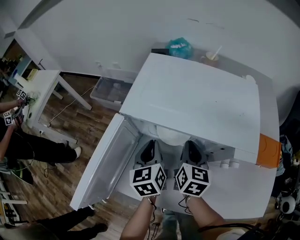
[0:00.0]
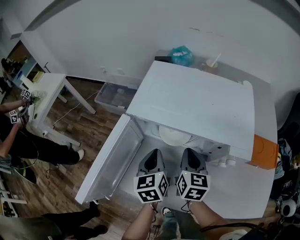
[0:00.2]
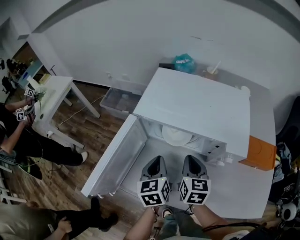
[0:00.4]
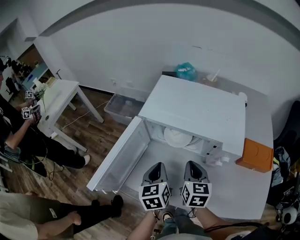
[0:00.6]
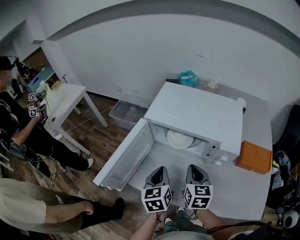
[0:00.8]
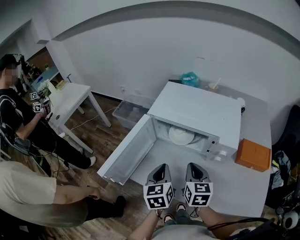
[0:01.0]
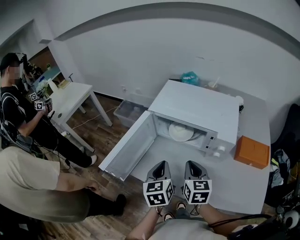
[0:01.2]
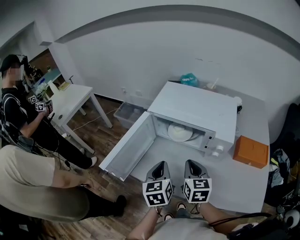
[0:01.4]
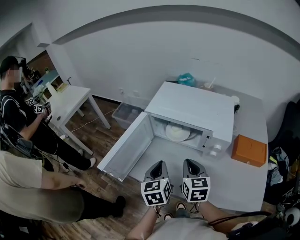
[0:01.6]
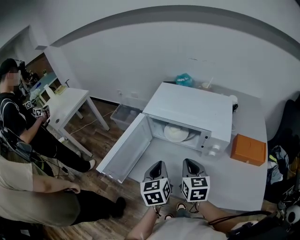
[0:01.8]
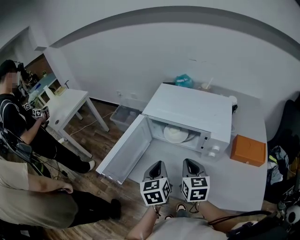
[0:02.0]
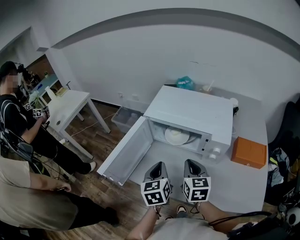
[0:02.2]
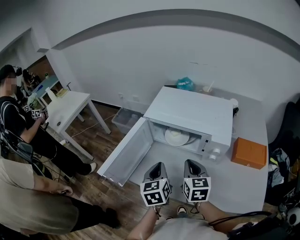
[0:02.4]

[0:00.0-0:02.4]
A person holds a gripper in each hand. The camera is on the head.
0.0 to 1.2 s: The grippers both shift backward and upward by about 20 cm. The right gripper turns by about 20 degrees.
1.2 to 2.4 s: There are only small adjustments of the grippers.

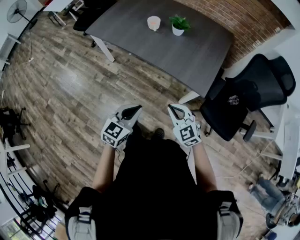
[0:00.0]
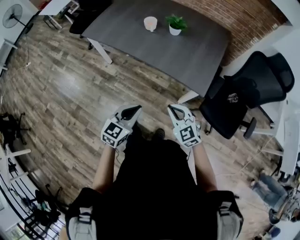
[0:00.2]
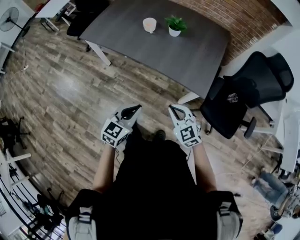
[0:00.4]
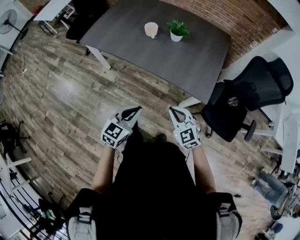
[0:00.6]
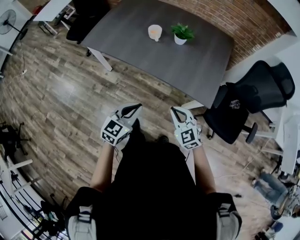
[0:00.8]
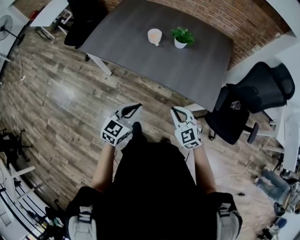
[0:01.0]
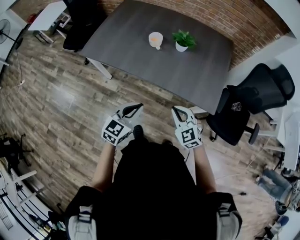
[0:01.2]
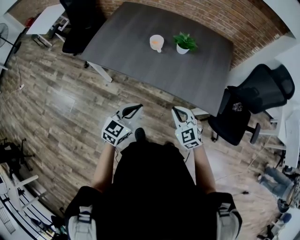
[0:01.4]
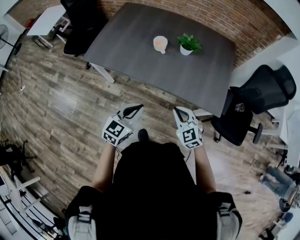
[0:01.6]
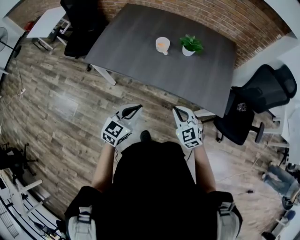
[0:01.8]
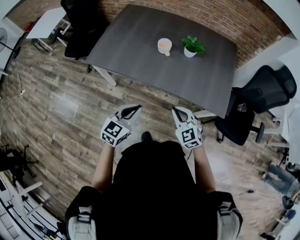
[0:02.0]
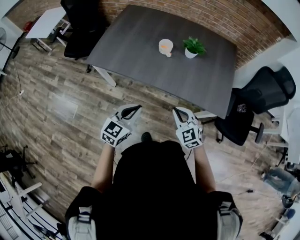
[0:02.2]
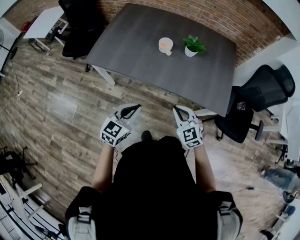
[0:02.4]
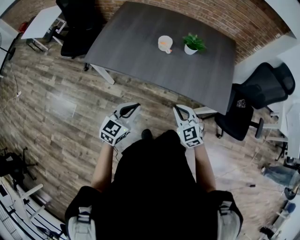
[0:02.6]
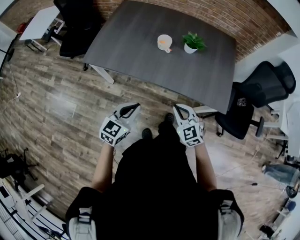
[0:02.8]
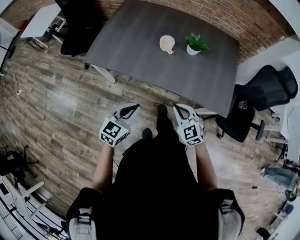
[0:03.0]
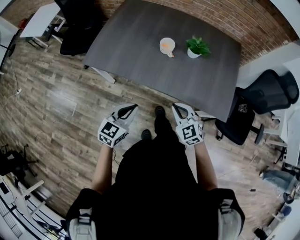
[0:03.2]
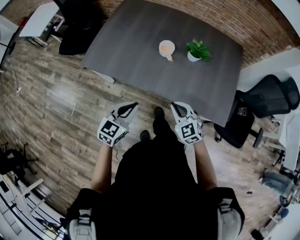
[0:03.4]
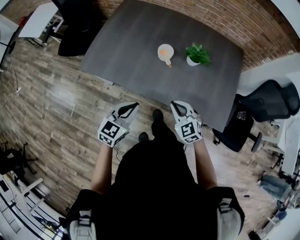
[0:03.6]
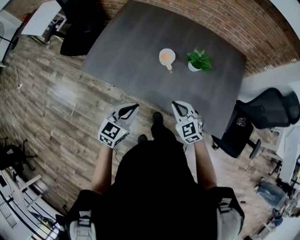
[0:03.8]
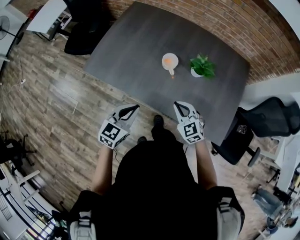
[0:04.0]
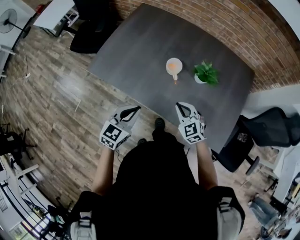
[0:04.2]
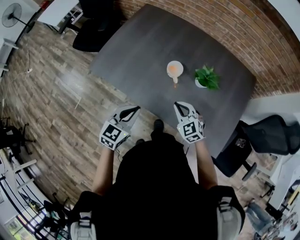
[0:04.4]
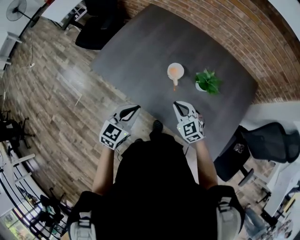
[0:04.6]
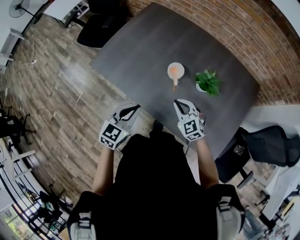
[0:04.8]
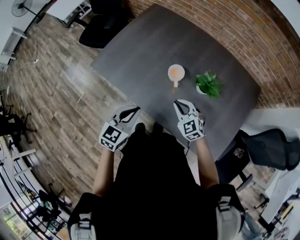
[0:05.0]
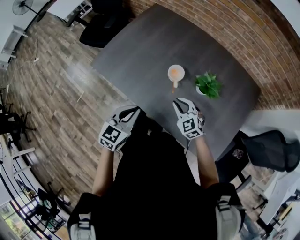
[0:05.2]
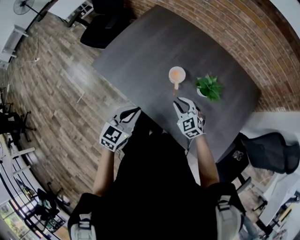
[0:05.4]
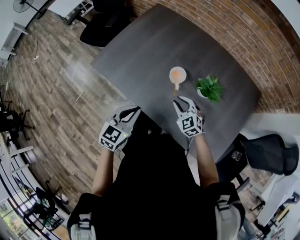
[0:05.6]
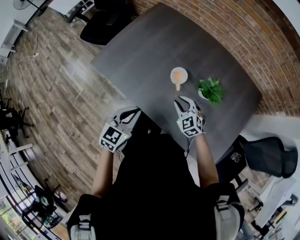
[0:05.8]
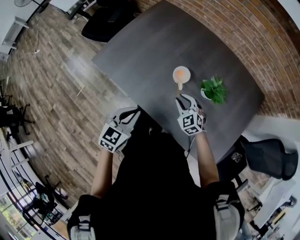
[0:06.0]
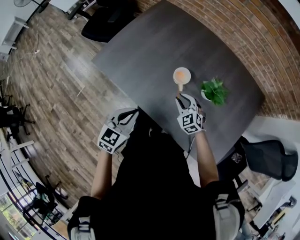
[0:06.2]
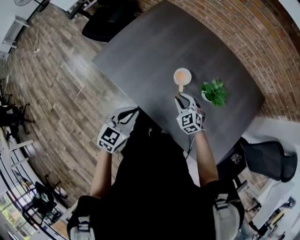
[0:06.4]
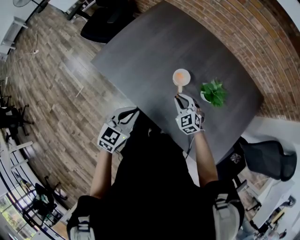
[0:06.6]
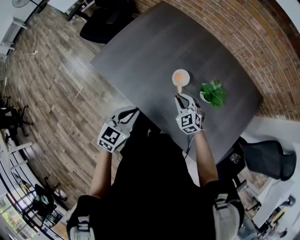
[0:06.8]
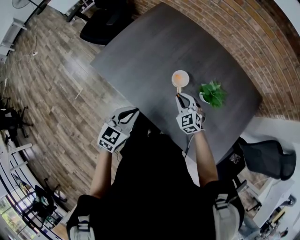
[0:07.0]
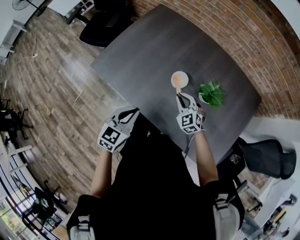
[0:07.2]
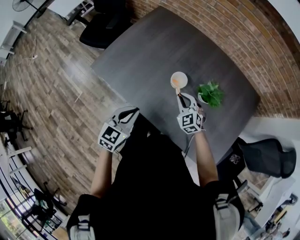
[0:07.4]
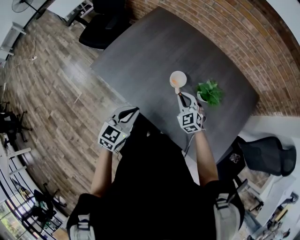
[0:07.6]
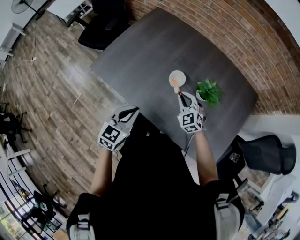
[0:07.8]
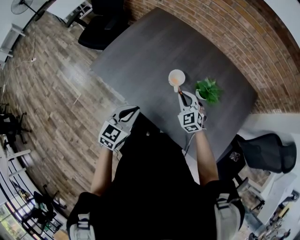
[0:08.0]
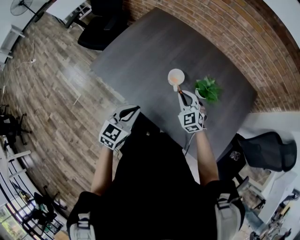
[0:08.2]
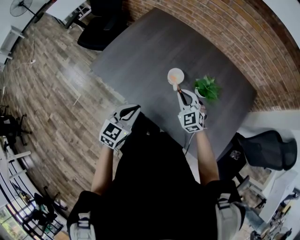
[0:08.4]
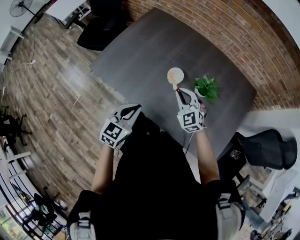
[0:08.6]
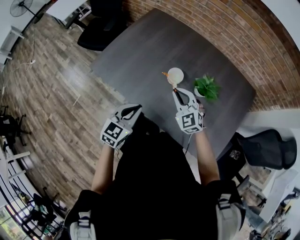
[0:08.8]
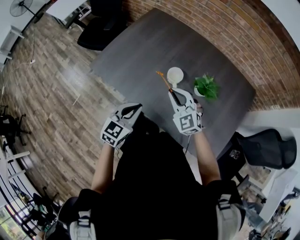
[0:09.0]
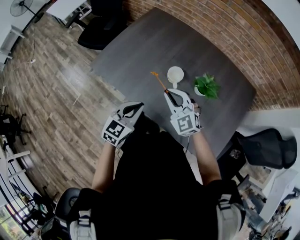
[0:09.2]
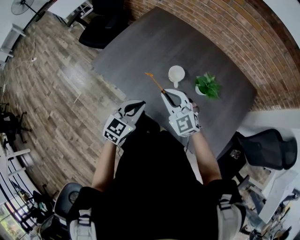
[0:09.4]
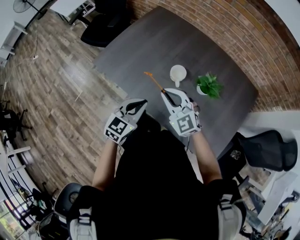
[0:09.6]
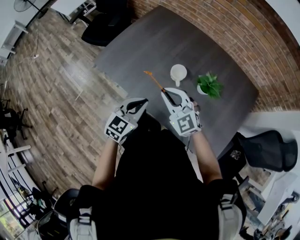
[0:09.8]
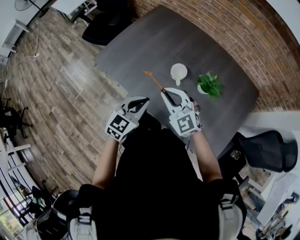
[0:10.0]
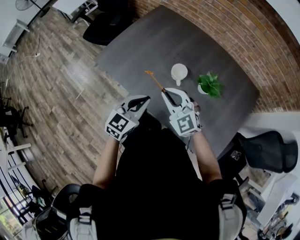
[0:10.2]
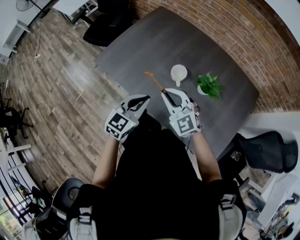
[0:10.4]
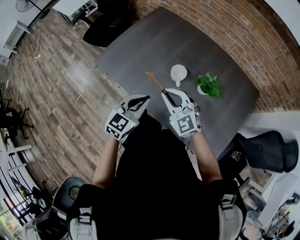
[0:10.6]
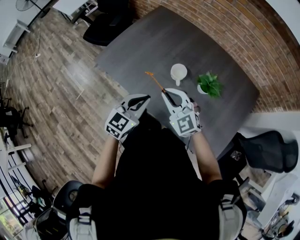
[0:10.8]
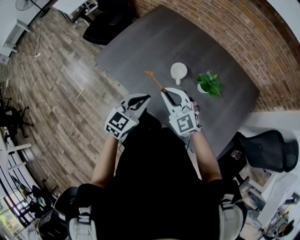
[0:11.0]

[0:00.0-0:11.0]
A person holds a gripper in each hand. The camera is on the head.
0.0 to 1.6 s: Both grippers move forward and to the left, approximately 25 cm.
1.6 to 3.2 s: Both grippers move to the left and forward, roughly 10 cm.
3.2 to 4.8 s: The two grippers go some 20 cm forward.
4.8 to 6.2 s: The right gripper heads forward and downward, covering about 10 cm.
6.2 to 7.8 s: The right gripper moves approximately 5 cm.
7.8 to 9.4 s: The right gripper shifts some 15 cm upward, to the left and backward, and changes its angle by some 20 degrees.
9.4 to 11.0 s: There are only small adjustments of the grippers.

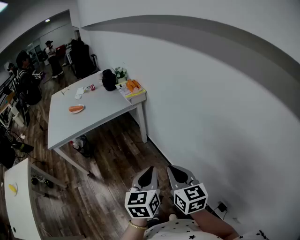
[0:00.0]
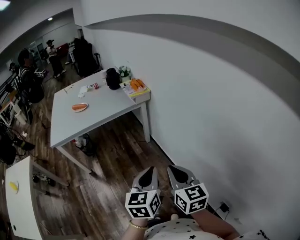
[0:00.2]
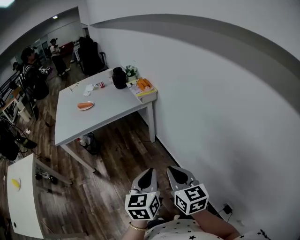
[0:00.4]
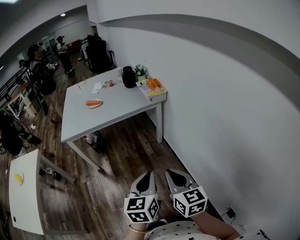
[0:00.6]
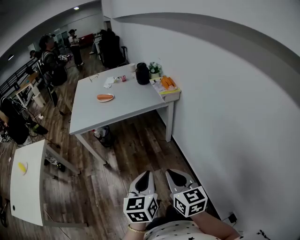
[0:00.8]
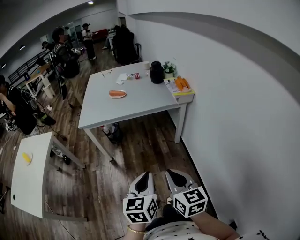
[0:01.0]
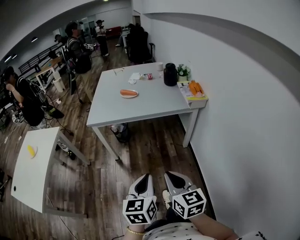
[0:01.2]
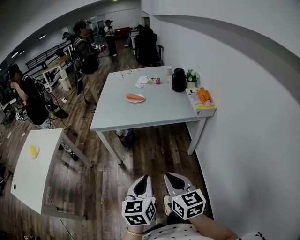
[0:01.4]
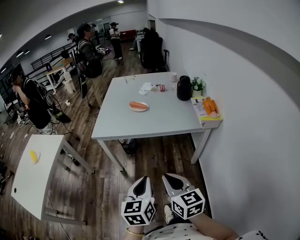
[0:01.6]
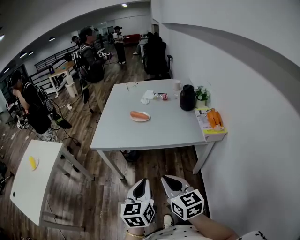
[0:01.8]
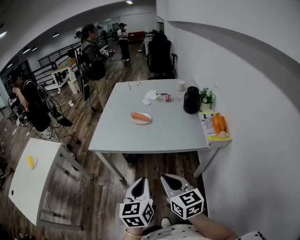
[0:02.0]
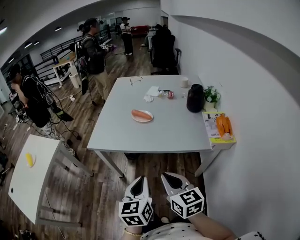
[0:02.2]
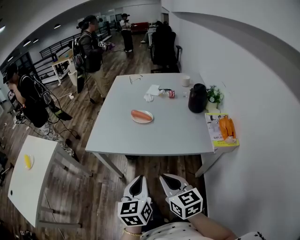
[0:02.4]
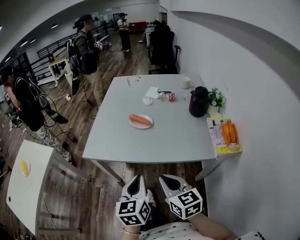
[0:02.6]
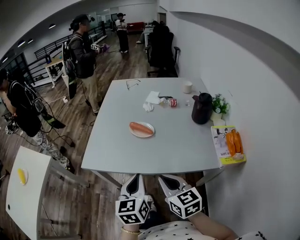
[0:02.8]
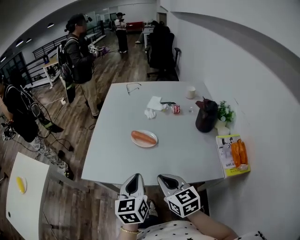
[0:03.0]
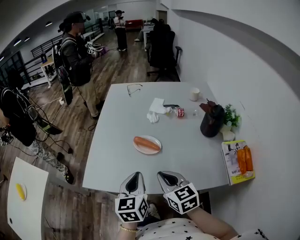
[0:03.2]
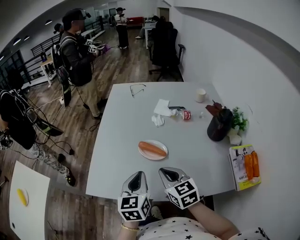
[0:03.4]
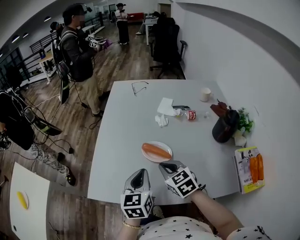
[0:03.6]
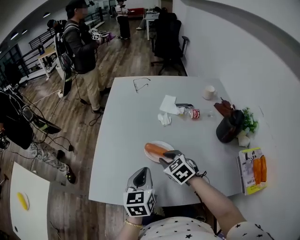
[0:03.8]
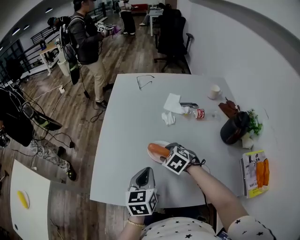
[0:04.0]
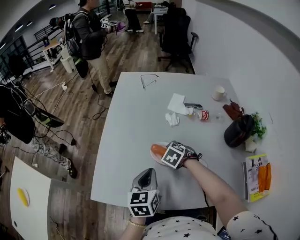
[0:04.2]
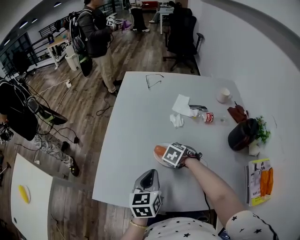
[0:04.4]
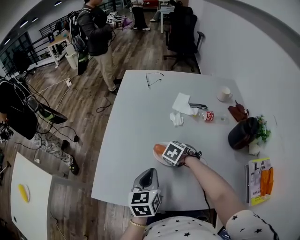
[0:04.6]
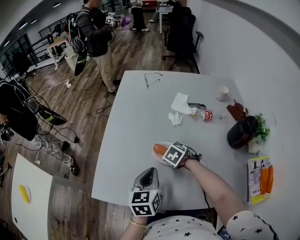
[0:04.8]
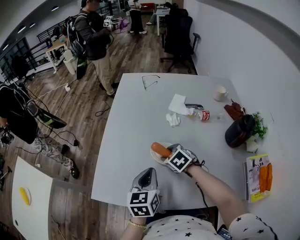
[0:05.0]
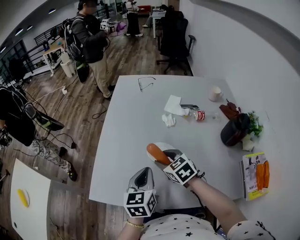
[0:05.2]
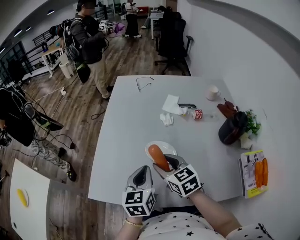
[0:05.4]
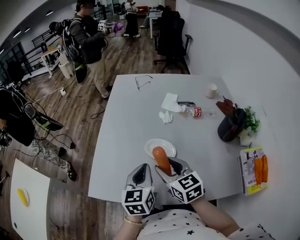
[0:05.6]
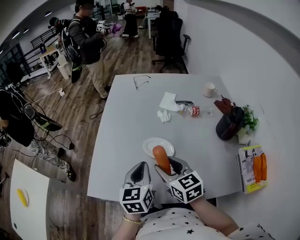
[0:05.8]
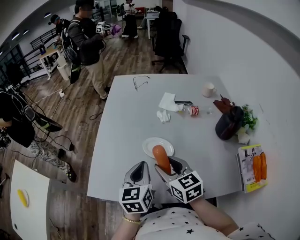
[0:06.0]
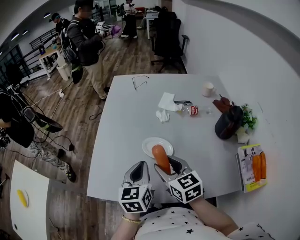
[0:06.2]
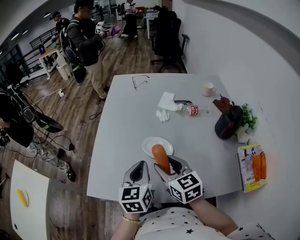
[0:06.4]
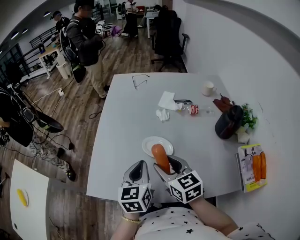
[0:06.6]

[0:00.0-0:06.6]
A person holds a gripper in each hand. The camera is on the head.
0.0 to 1.6 s: The left gripper moves roughly 35 cm, and changes its angle by roughly 30 degrees; the right gripper changes place by approximately 35 cm, and changes its angle by some 30 degrees.
1.6 to 3.2 s: Both grippers are carried forward, some 50 cm.
3.2 to 5.0 s: The left gripper shifts by about 15 cm; the right gripper moves some 30 cm, points its fingers approximately 30 degrees further downward, and opens up.
5.0 to 6.6 s: The right gripper goes approximately 15 cm upward and backward, and tips its fingers upward by roughly 40 degrees.

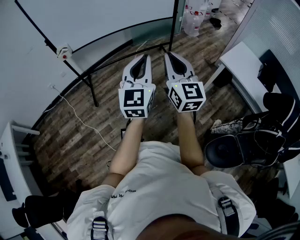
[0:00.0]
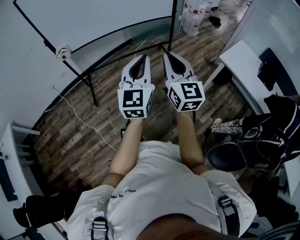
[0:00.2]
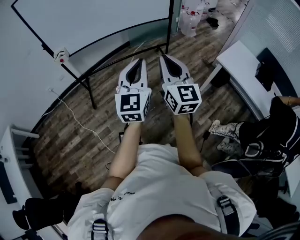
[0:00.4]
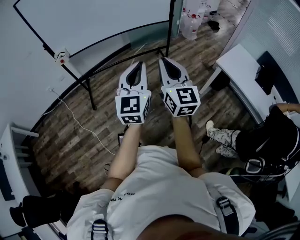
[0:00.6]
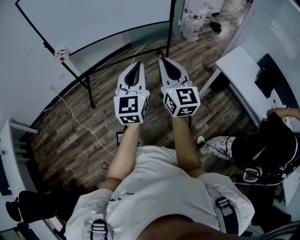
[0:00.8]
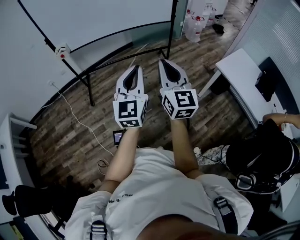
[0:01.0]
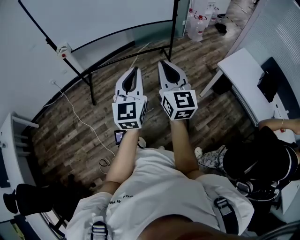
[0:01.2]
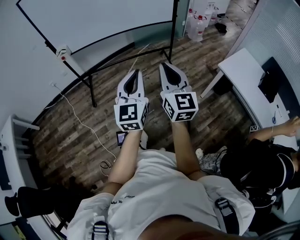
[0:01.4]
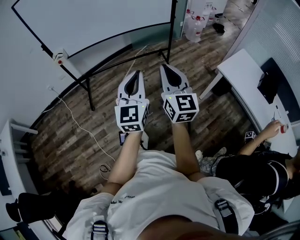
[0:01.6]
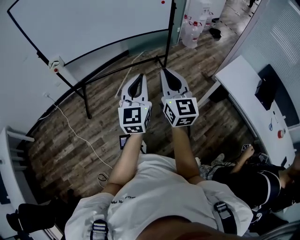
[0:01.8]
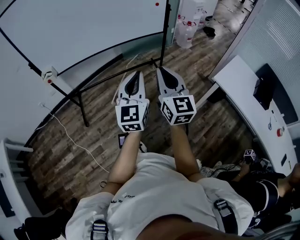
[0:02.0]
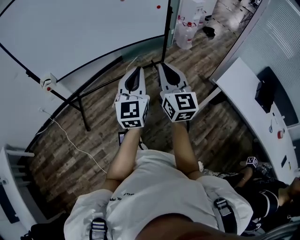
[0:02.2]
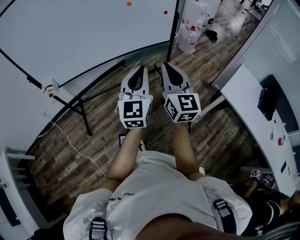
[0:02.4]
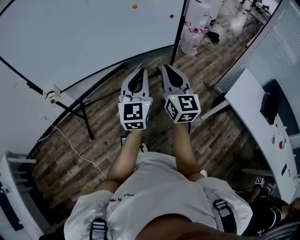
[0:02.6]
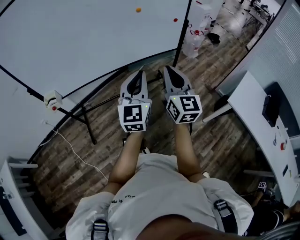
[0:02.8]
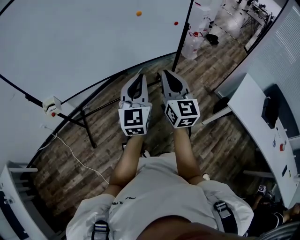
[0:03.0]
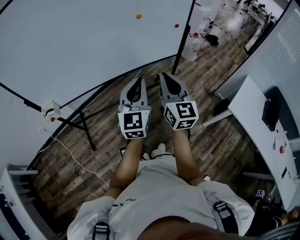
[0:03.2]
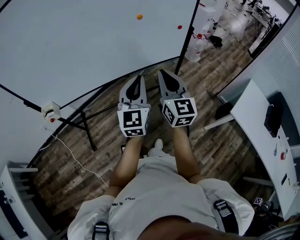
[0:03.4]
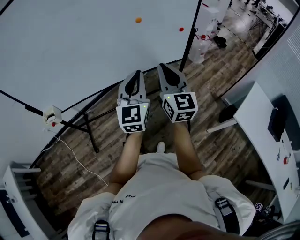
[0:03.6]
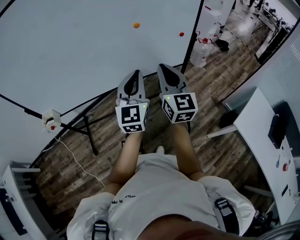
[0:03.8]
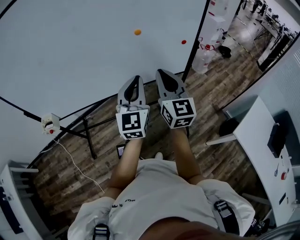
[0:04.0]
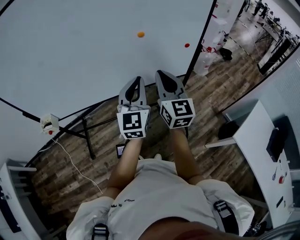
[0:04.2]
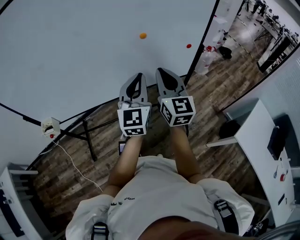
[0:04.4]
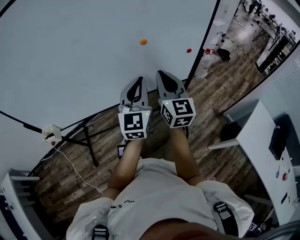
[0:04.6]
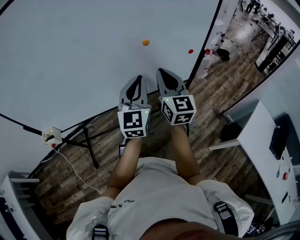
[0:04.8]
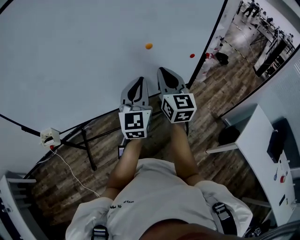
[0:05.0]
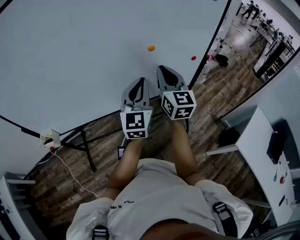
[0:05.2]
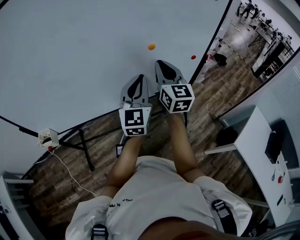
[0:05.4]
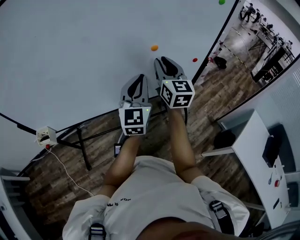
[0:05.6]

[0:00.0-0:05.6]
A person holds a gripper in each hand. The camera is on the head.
0.0 to 1.4 s: Both grippers travel together to the right, roughly 5 cm.
1.4 to 2.8 s: The two grippers go some 40 cm forward.
2.8 to 4.2 s: Both grippers move forward, some 20 cm.
4.2 to 5.6 s: The left gripper shifts roughly 10 cm forward; the right gripper goes some 15 cm forward.
